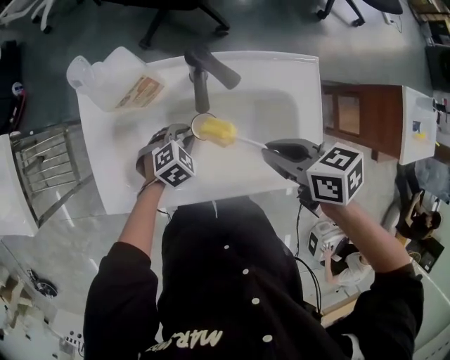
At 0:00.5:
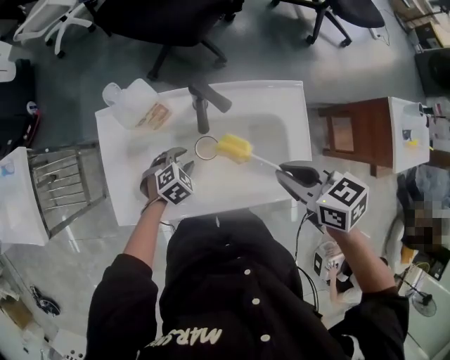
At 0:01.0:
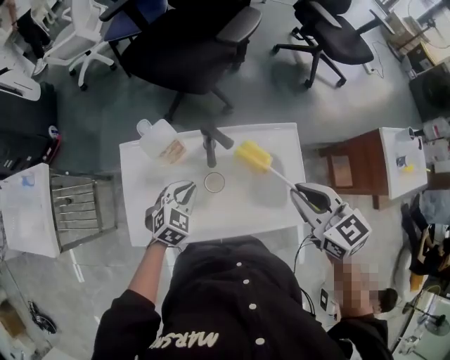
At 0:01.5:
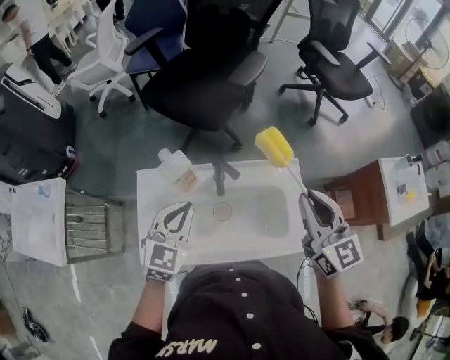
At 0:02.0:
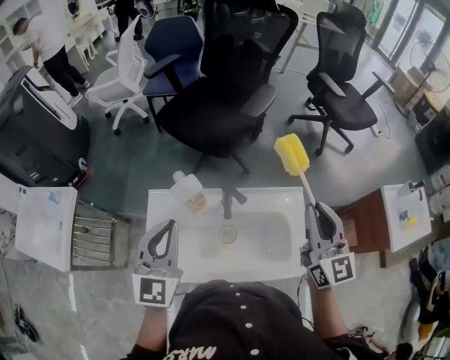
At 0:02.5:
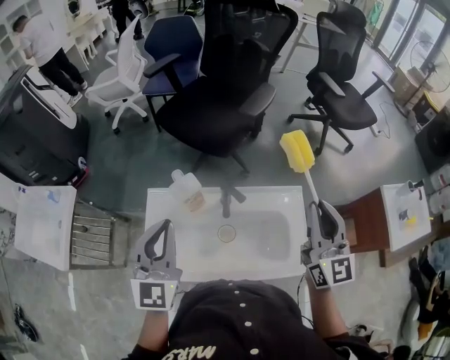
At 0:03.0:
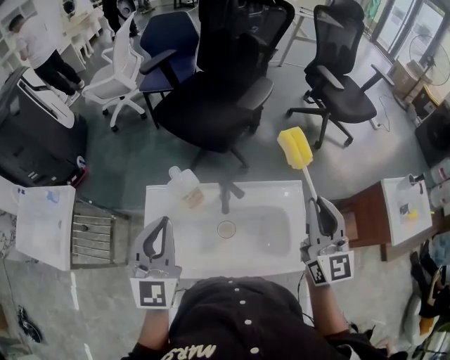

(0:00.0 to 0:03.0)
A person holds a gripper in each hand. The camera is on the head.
0:00.0 - 0:01.5: Both grippers move upward, roughly 30 cm. The right gripper points its fingers about 40 degrees further upward. Meanwhile the left gripper tilts its fingers some 40 degrees upward.
0:01.5 - 0:03.0: The left gripper goes about 15 cm upward and to the left, and turns by approximately 30 degrees.

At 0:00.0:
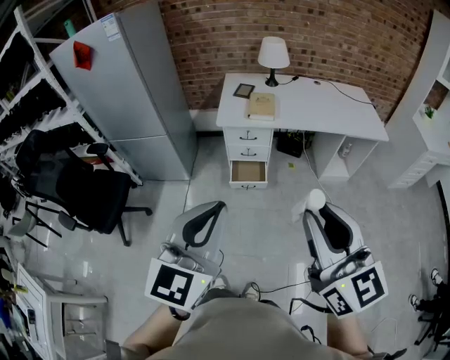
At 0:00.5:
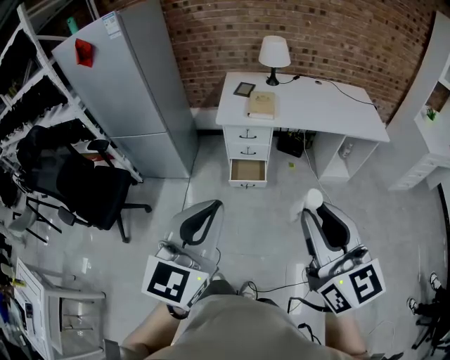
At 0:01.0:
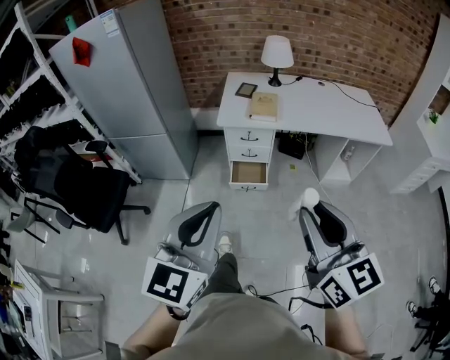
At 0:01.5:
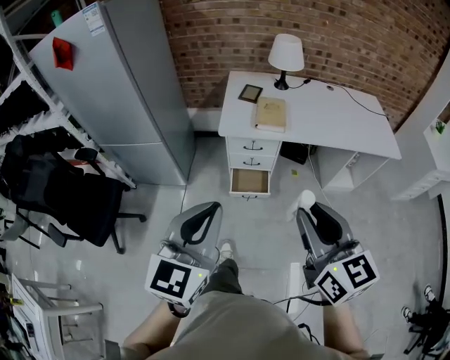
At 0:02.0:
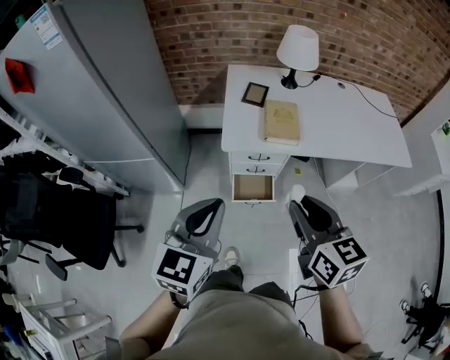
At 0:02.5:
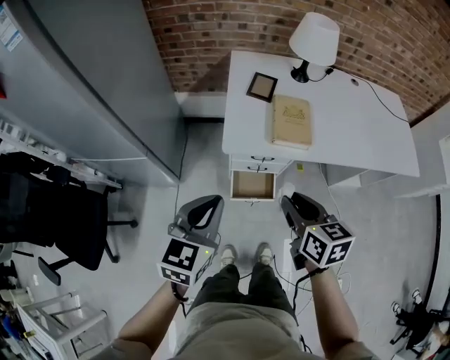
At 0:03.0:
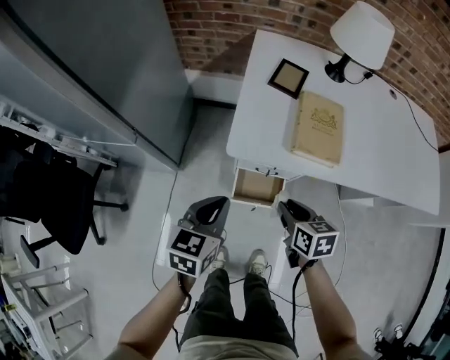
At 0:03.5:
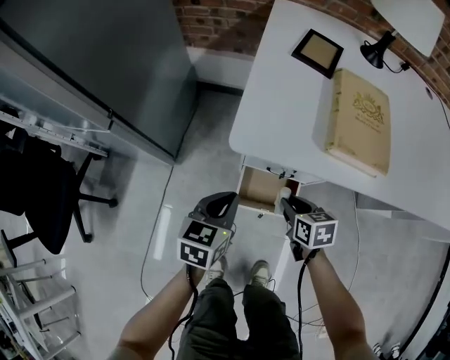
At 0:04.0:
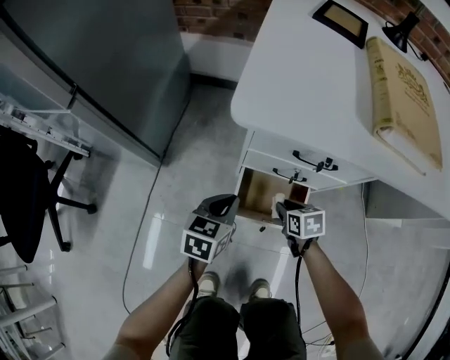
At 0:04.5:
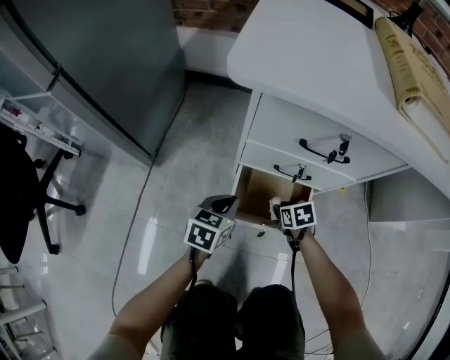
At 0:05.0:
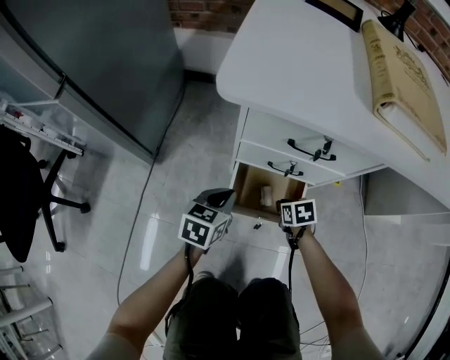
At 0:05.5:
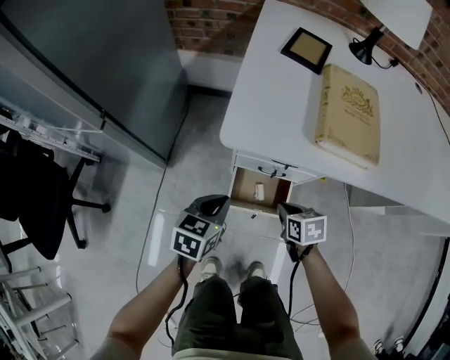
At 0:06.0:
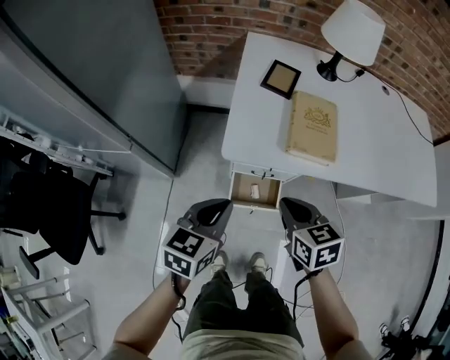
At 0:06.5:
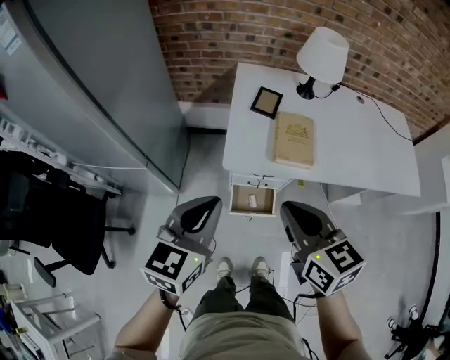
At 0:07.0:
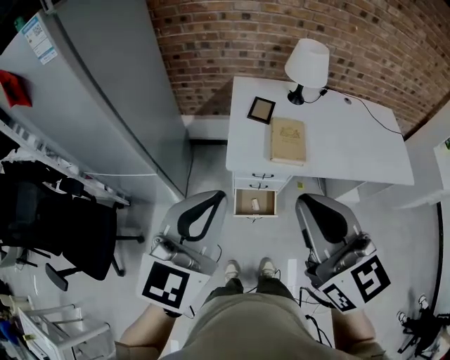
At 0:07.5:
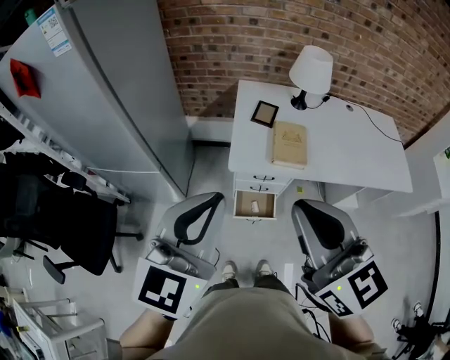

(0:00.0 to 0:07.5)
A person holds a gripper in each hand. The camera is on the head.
0:00.0 - 0:02.0: The right gripper travels forward and downward by roughly 40 cm, and rotates about 20 degrees; the left gripper moves forward, about 35 cm.
0:02.0 - 0:04.0: Both grippers travel together downward, about 70 cm. The left gripper rotates approximately 30 degrees. The right gripper tilts its fingers roughly 40 degrees downward.
0:04.0 - 0:05.5: The grippers both shift upward by roughly 15 cm. The right gripper closes up.
0:05.5 - 0:07.5: Both grippers move upward, roughly 70 cm. The right gripper tips its fingers upward by about 50 degrees; the left gripper points its fingers approximately 30 degrees further upward.

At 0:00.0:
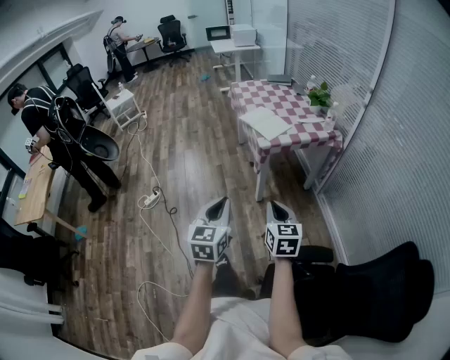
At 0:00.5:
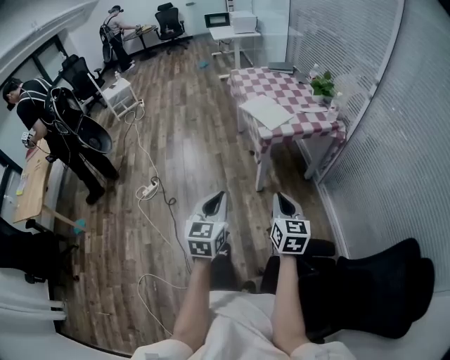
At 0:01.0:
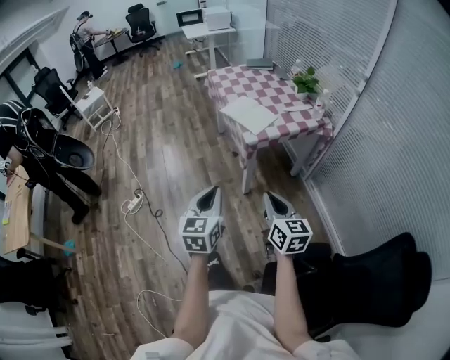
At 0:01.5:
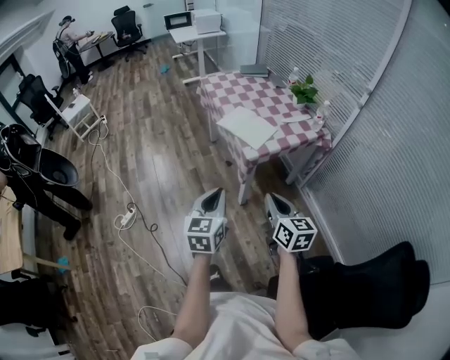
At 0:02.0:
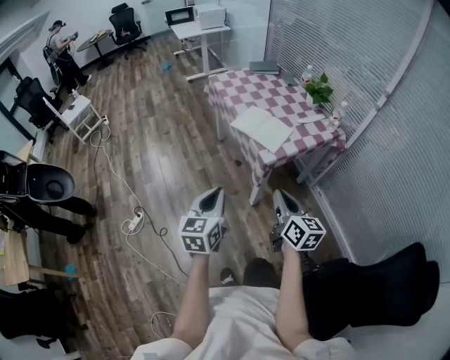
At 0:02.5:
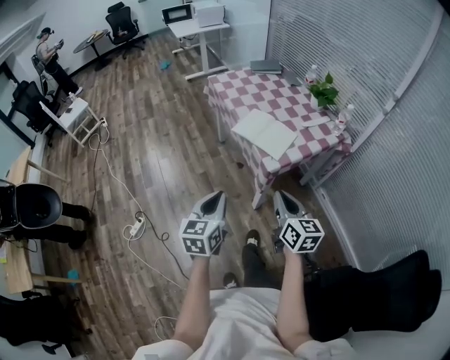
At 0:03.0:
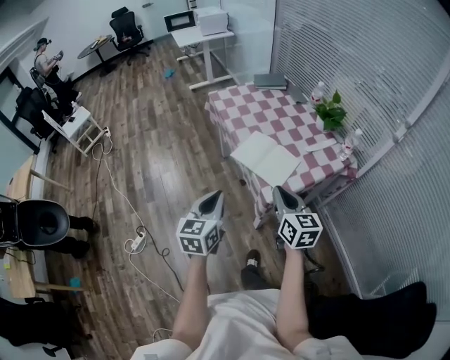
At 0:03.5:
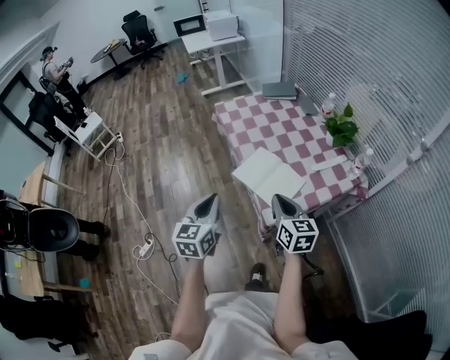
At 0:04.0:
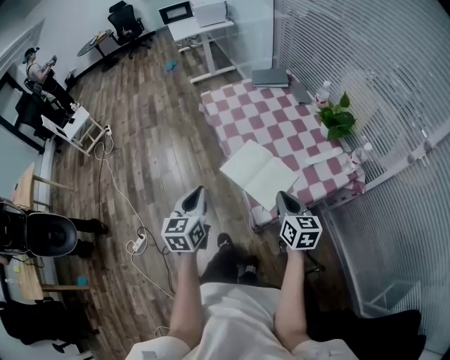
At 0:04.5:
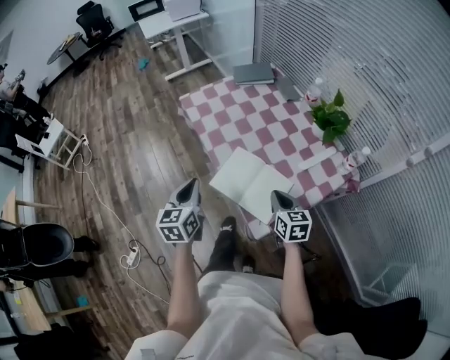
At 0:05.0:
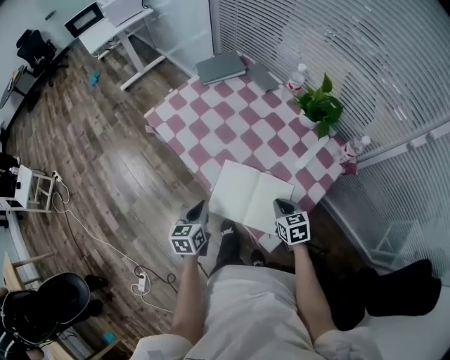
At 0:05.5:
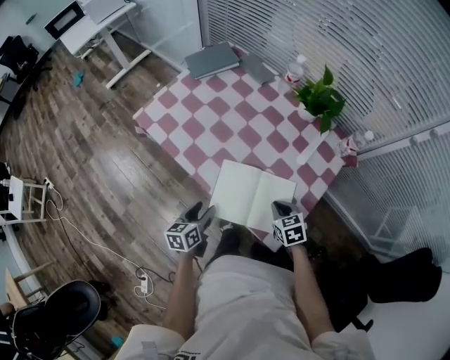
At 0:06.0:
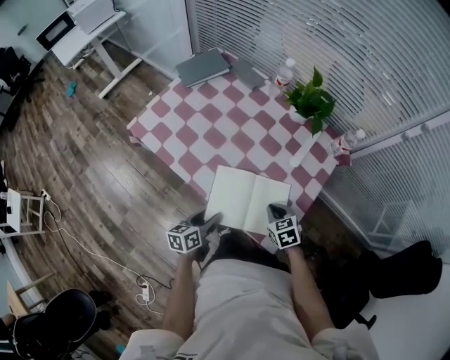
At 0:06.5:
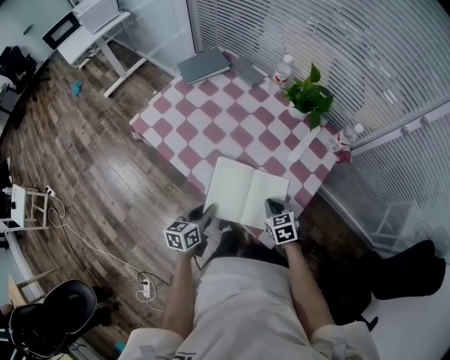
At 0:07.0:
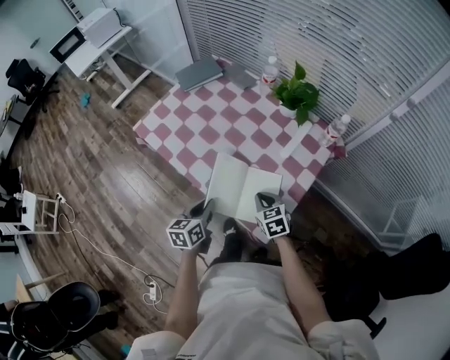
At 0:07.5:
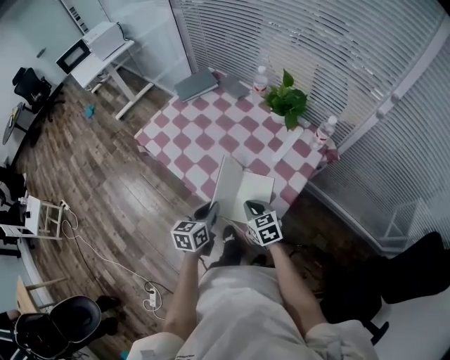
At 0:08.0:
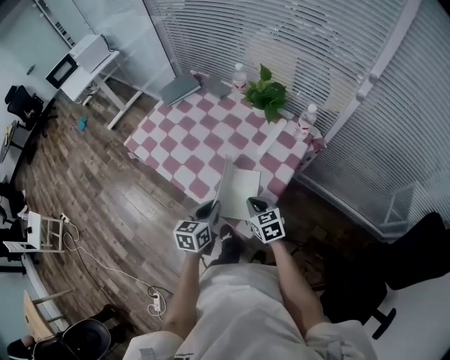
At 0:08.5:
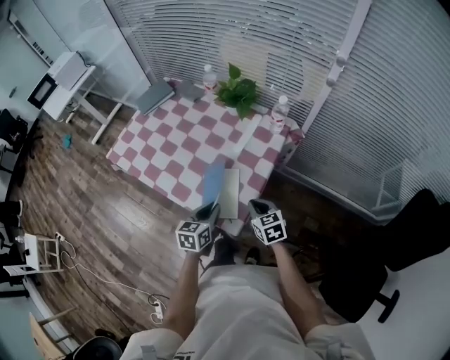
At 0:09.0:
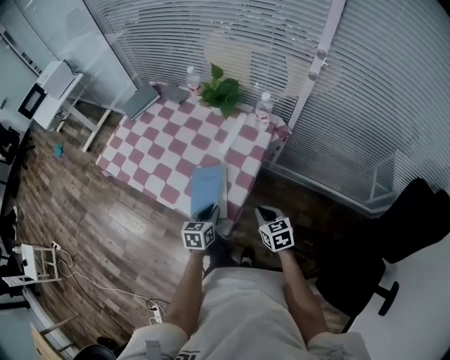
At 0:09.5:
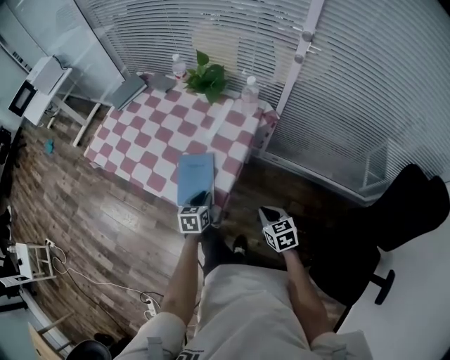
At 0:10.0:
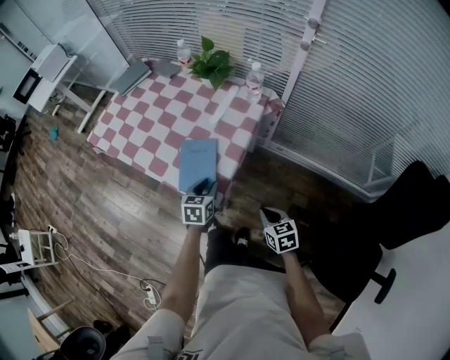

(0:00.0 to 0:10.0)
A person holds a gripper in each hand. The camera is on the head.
0:00.0 - 0:02.0: The left gripper heads forward and to the left, covering about 30 cm, while the right gripper moves forward, roughly 25 cm, and rotates some 20 degrees.
0:02.0 - 0:04.0: The grippers both shift forward by roughly 35 cm.
0:04.0 - 0:06.0: The grippers both shift downward by about 25 cm. The right gripper tips its fingers downward by approximately 30 degrees. Meanwhile the left gripper swivels approximately 60 degrees, and opens.
0:06.0 - 0:08.0: The right gripper travels upward by some 10 cm, while the left gripper shifts about 20 cm to the right and upward, swivels some 20 degrees, and closes.
0:08.0 - 0:10.0: The left gripper shifts some 15 cm to the right and downward; the right gripper travels to the right and backward by some 25 cm.

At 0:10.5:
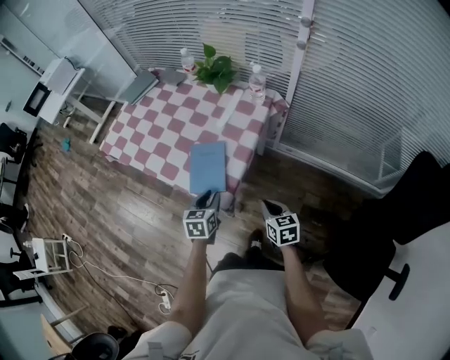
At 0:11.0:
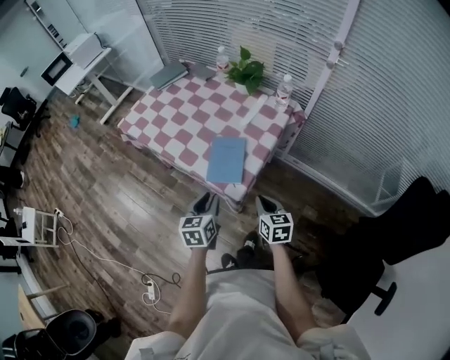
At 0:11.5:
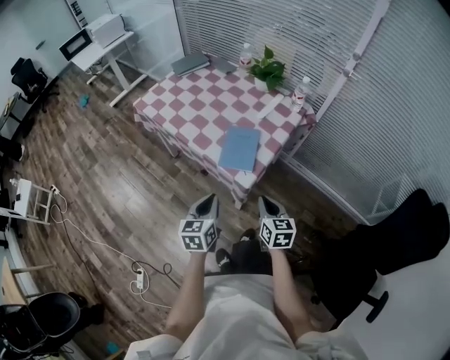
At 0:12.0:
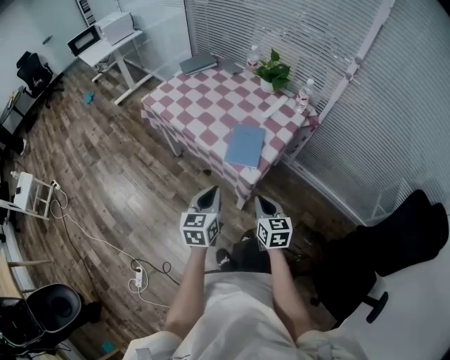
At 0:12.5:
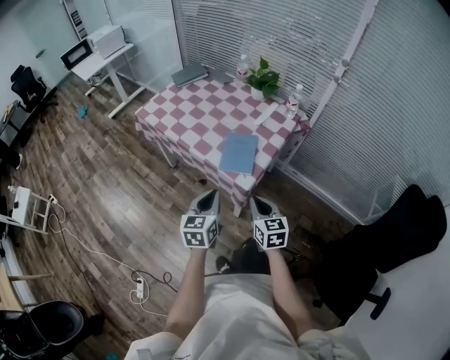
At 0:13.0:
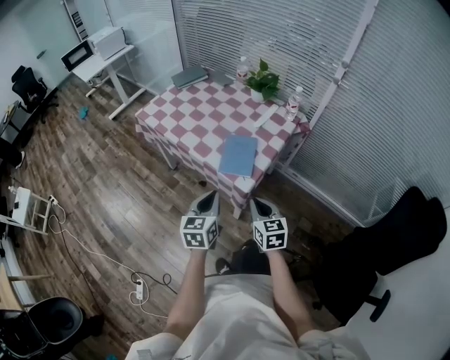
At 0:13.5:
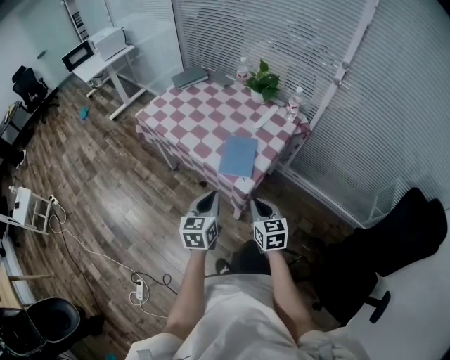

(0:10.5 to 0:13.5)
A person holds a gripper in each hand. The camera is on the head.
0:10.5 - 0:12.0: The right gripper travels to the left, upward and backward by about 20 cm; the left gripper moves backward, to the left and upward, roughly 25 cm, rotates some 20 degrees, and closes its fingers.
0:12.0 - 0:13.5: The grippers move only a little.

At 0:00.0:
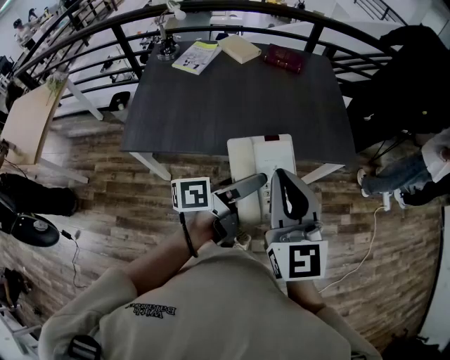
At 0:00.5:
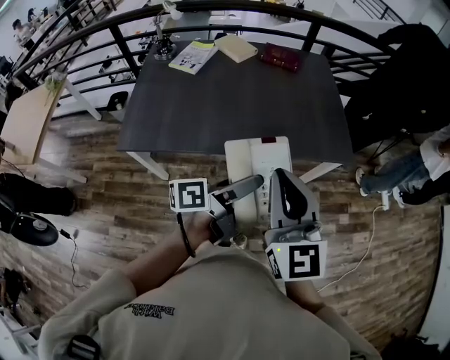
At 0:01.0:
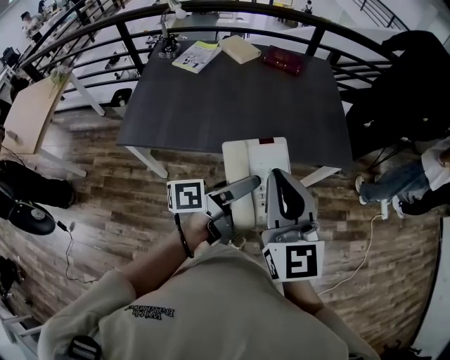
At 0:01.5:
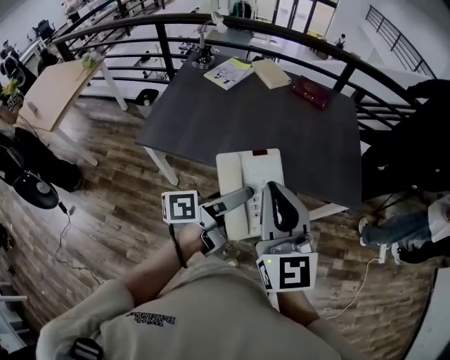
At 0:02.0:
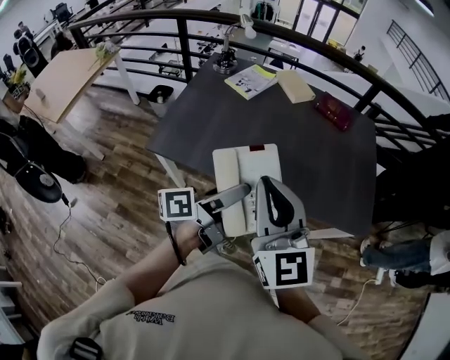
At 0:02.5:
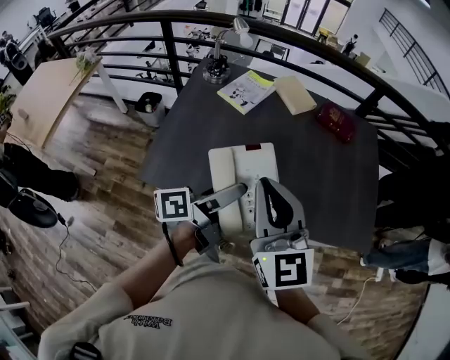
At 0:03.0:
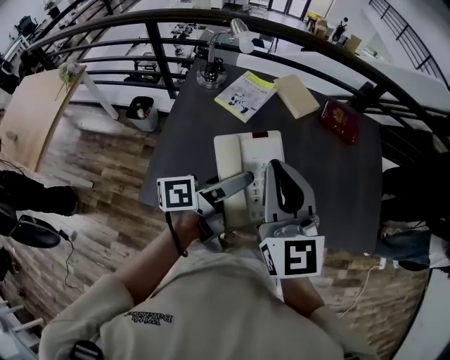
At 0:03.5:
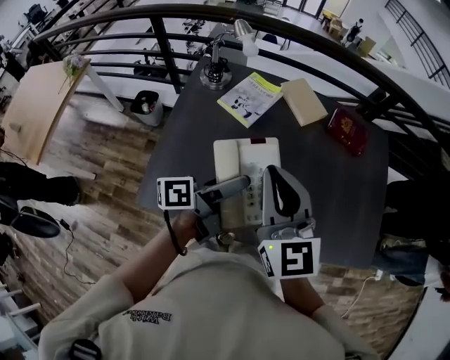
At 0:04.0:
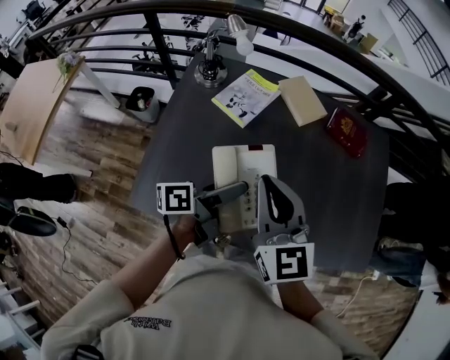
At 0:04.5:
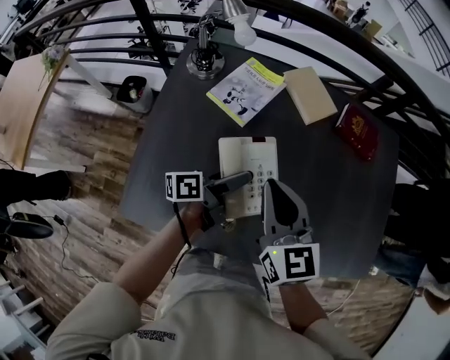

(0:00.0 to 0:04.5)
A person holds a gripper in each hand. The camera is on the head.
0:00.0 - 0:02.0: Both grippers travel together to the left, roughly 15 cm. The right gripper swivels approximately 20 degrees, while the left gripper rotates roughly 20 degrees.
0:02.0 - 0:04.5: The pair of grippers is taken forward, about 40 cm. The right gripper swivels some 20 degrees; the left gripper travels downward by some 15 cm.
